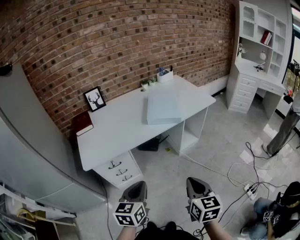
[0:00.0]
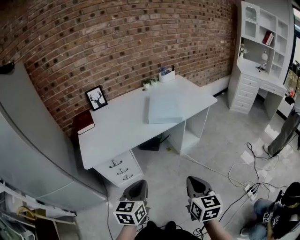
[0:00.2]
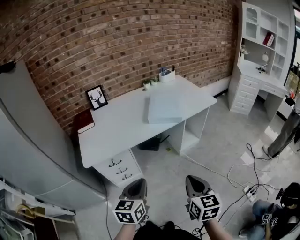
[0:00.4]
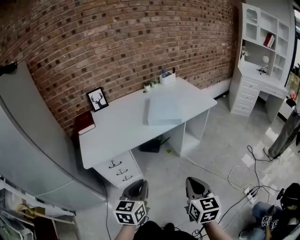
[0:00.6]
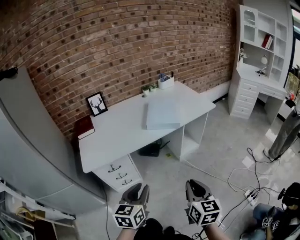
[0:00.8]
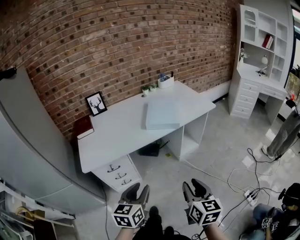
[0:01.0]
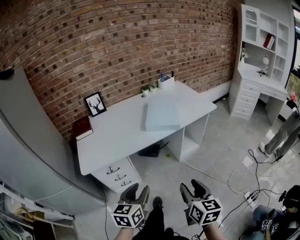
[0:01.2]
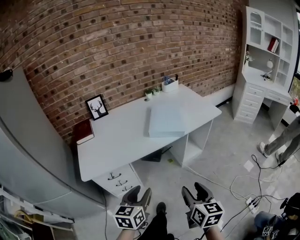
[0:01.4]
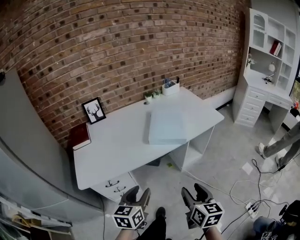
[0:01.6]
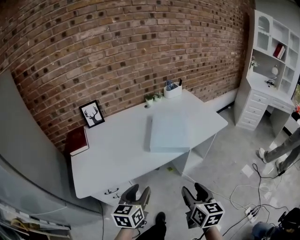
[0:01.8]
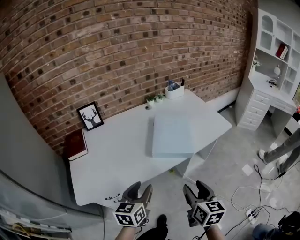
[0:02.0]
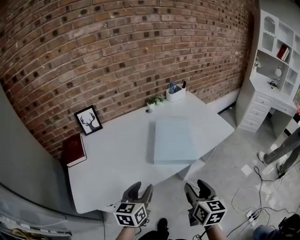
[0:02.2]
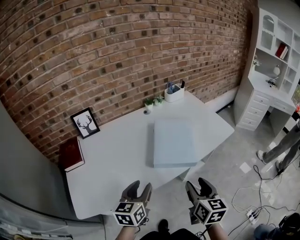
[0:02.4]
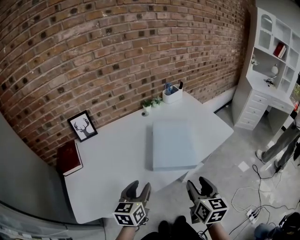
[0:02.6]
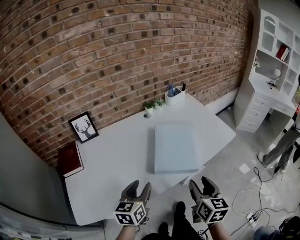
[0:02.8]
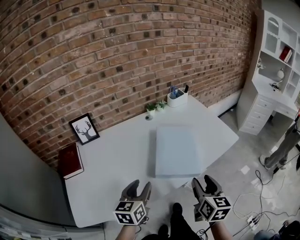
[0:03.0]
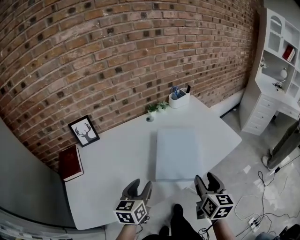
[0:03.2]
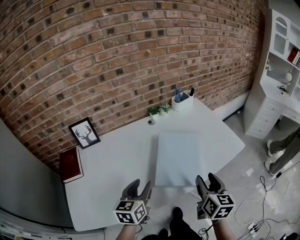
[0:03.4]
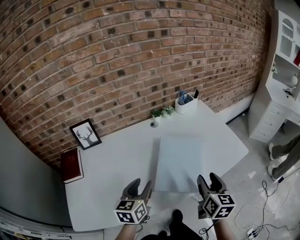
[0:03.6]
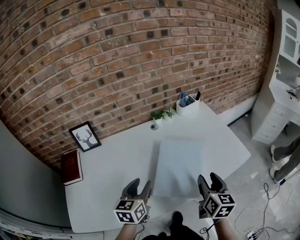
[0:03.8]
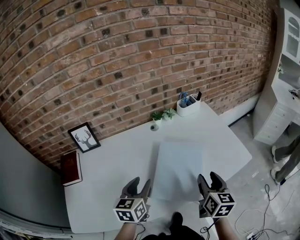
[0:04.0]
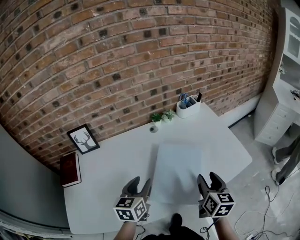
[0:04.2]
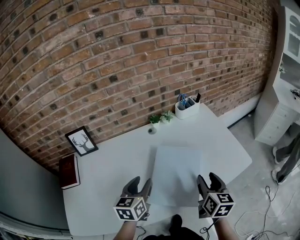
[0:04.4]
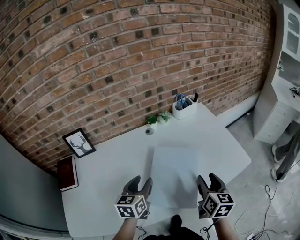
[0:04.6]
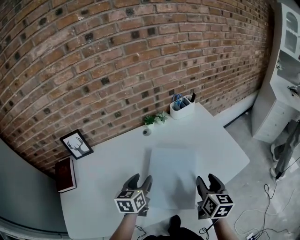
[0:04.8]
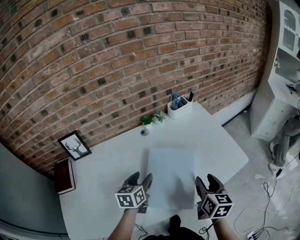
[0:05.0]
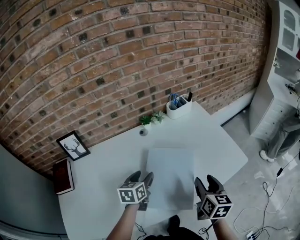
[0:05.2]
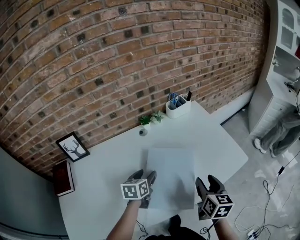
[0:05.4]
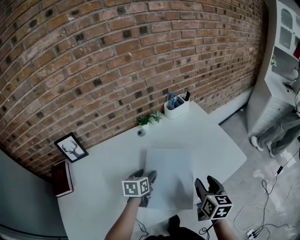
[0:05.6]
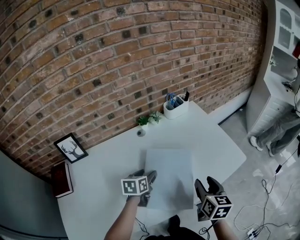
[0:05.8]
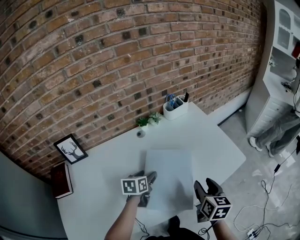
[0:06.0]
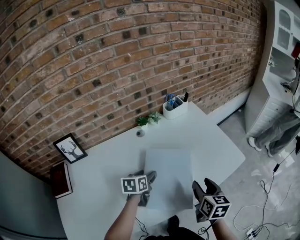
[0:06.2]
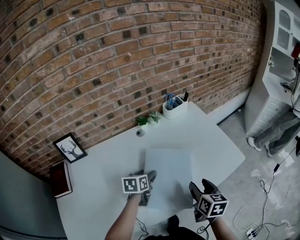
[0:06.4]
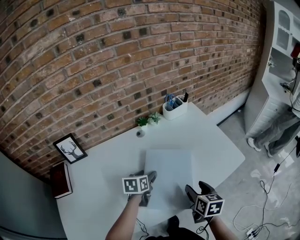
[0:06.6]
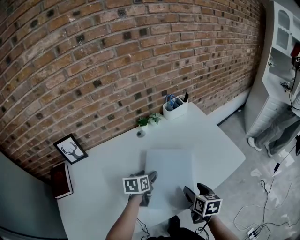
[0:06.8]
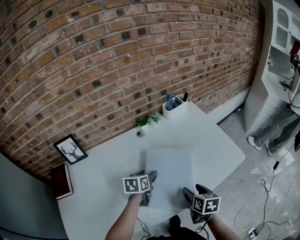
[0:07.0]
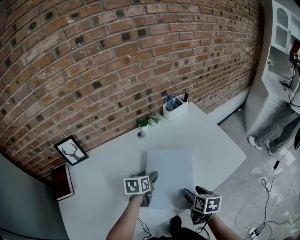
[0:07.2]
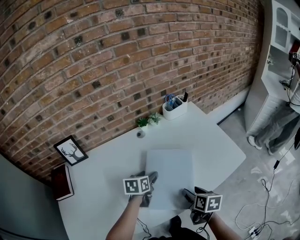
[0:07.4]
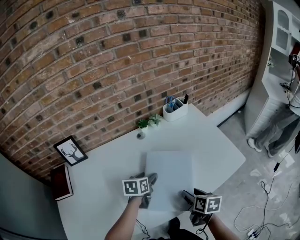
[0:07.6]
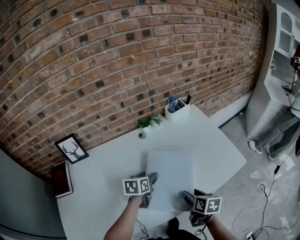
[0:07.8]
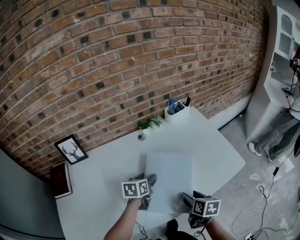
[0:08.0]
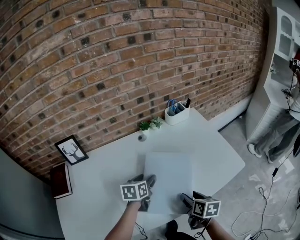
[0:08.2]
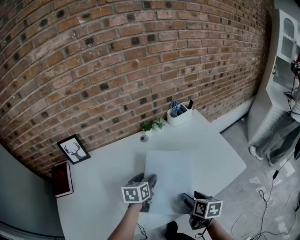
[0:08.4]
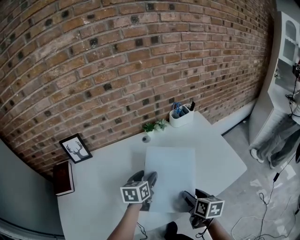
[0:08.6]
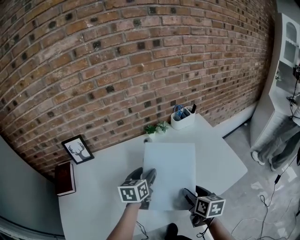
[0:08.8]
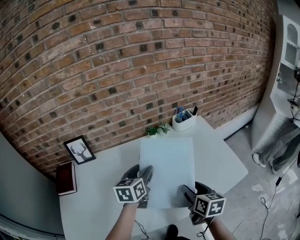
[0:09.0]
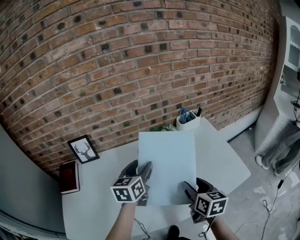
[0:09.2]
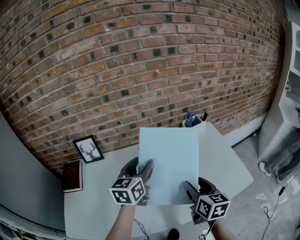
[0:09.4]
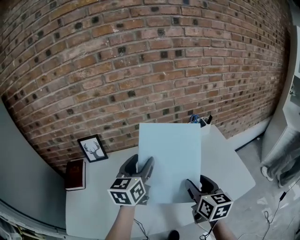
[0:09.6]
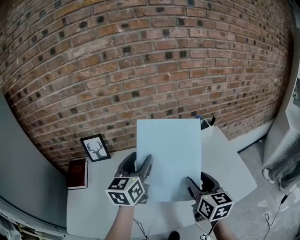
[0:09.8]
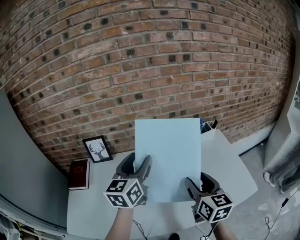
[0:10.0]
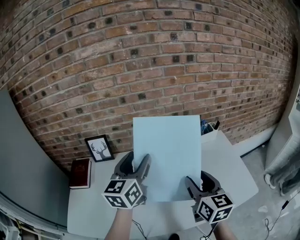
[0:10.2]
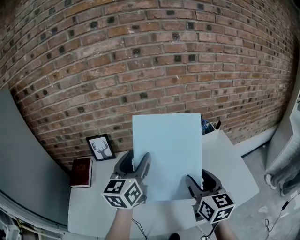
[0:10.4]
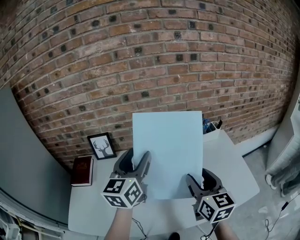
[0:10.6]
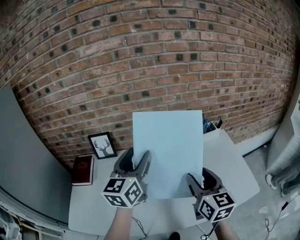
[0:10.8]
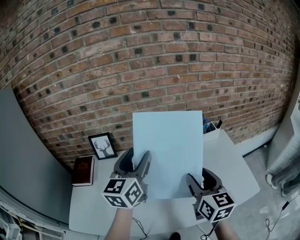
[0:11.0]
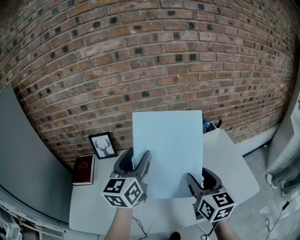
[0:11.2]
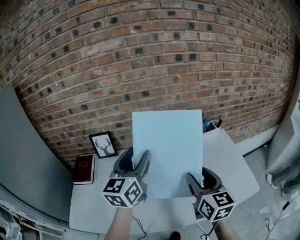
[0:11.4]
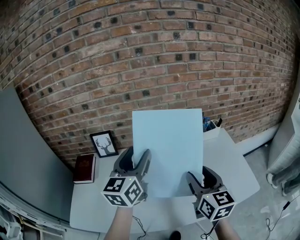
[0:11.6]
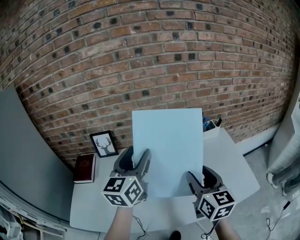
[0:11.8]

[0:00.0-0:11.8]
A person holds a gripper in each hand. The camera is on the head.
0:00.0 to 0:01.4: Both grippers travel together forward, some 5 cm. The left gripper opens, while the right gripper opens up.
0:01.4 to 0:03.0: The grippers both shift forward by some 35 cm.
0:03.0 to 0:04.4: Both grippers move forward, approximately 20 cm.
0:04.4 to 0:06.0: The left gripper travels downward and forward by about 15 cm, and swivels some 20 degrees.
0:06.0 to 0:07.4: The right gripper travels downward and to the left by approximately 10 cm, and turns by some 20 degrees.
0:07.4 to 0:08.8: The left gripper goes approximately 10 cm upward. The right gripper heads upward, covering roughly 5 cm.
0:08.8 to 0:10.4: Both grippers move upward and to the left, some 20 cm. The right gripper turns by roughly 30 degrees. The left gripper rotates roughly 30 degrees.
0:10.4 to 0:11.8: There are only small adjustments of the grippers.

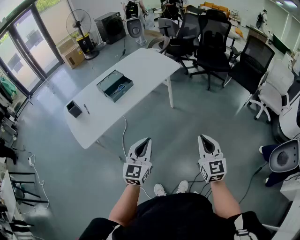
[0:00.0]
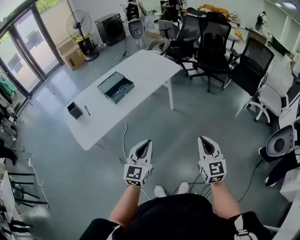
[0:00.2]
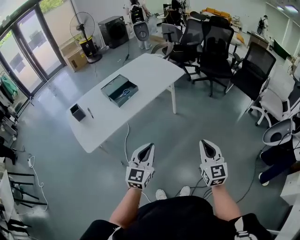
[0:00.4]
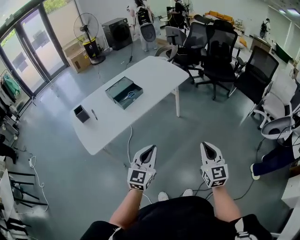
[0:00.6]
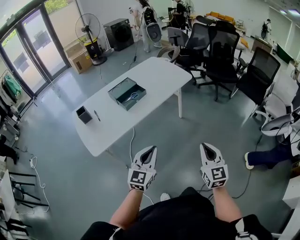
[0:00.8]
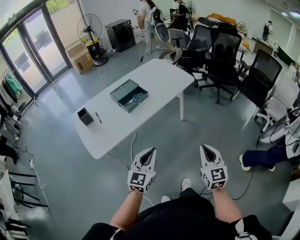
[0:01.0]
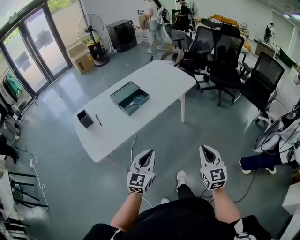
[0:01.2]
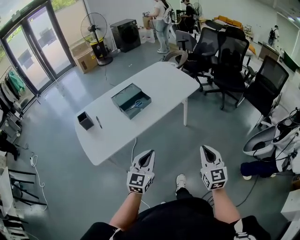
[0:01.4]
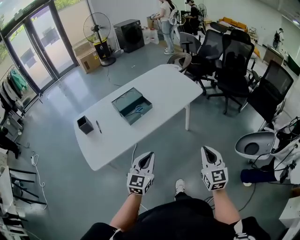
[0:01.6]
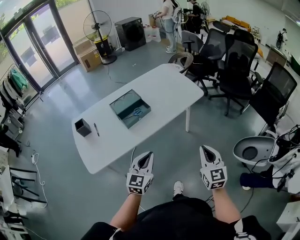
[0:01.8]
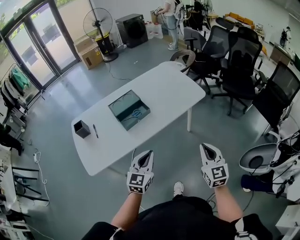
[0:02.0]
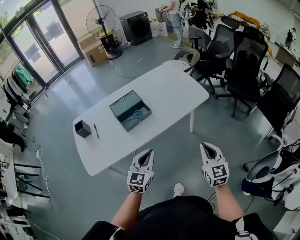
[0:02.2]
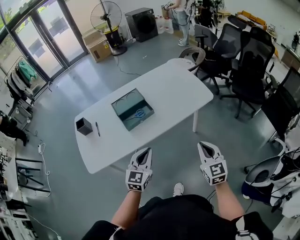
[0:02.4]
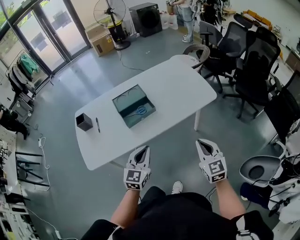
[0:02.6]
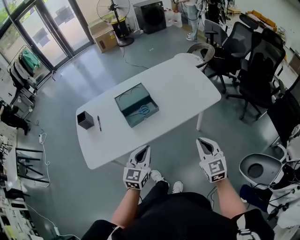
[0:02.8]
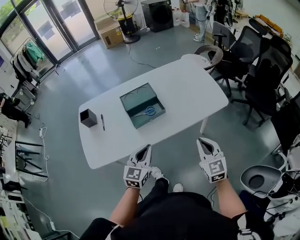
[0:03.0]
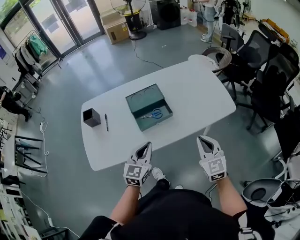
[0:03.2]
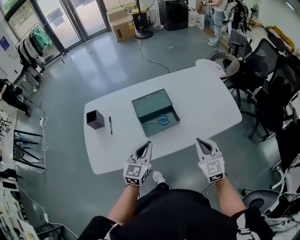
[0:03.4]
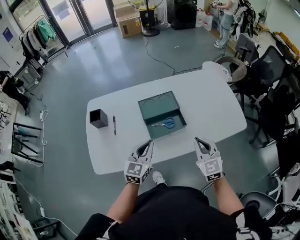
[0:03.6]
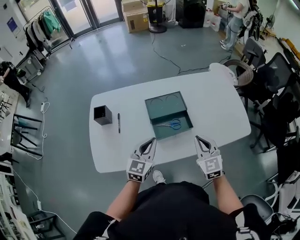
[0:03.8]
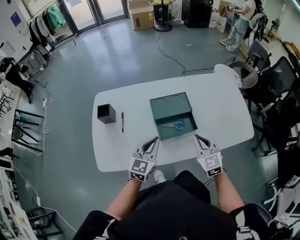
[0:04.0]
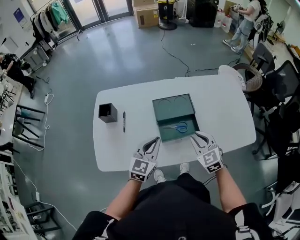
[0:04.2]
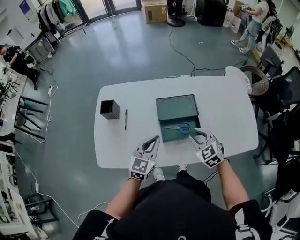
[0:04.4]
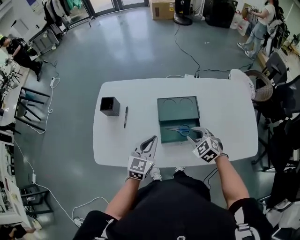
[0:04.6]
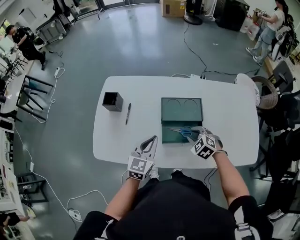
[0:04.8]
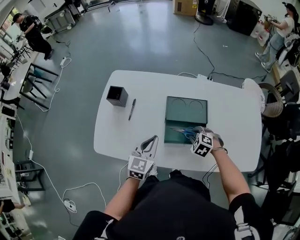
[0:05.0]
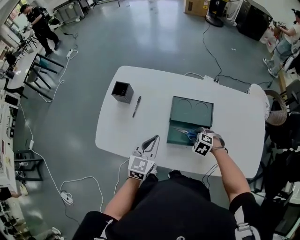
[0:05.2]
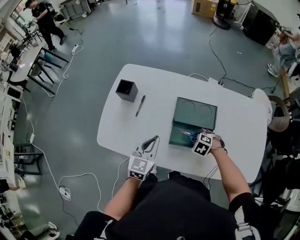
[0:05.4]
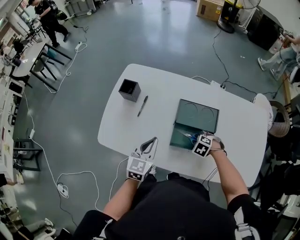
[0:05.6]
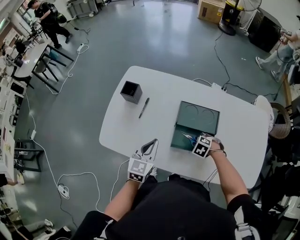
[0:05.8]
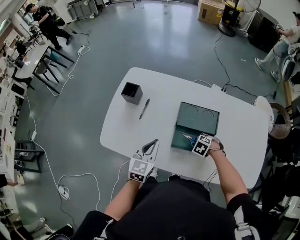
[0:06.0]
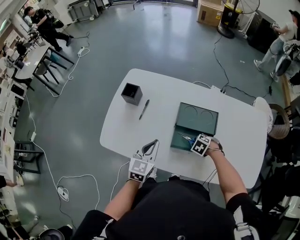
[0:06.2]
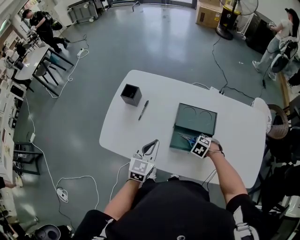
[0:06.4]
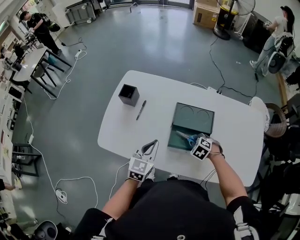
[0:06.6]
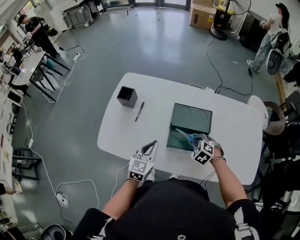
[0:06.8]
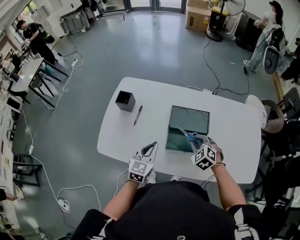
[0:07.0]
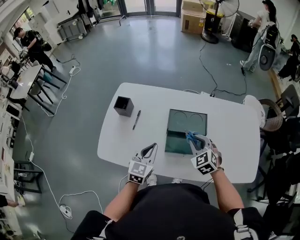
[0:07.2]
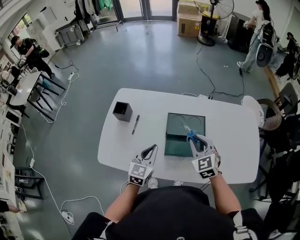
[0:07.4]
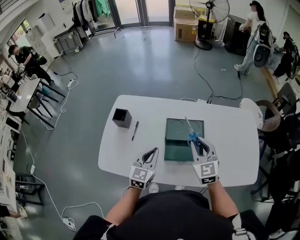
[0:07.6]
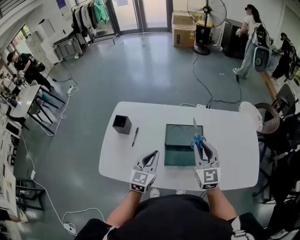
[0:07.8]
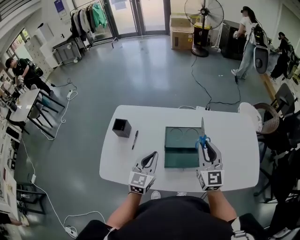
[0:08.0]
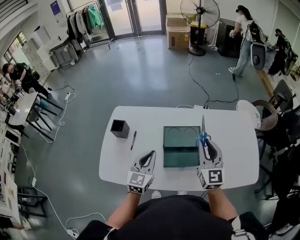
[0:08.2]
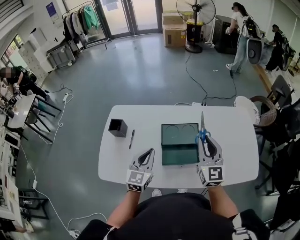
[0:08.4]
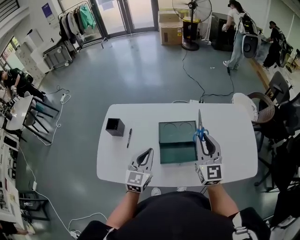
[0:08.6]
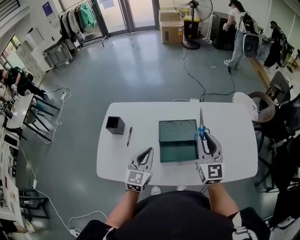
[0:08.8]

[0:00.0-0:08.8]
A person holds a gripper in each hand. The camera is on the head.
0:00.0 to 0:01.4: The right gripper heads forward and to the left, covering some 15 cm, while the left gripper shifts roughly 15 cm to the left and forward.
0:01.4 to 0:03.0: Both grippers travel together forward, roughly 25 cm. The right gripper swivels roughly 30 degrees.
0:03.0 to 0:04.4: Both grippers travel together forward and to the left, some 30 cm. The right gripper swivels roughly 40 degrees, and opens up.
0:04.4 to 0:05.8: The right gripper shifts about 20 cm downward, and angles its fingers downward, by roughly 40 degrees, while the left gripper shifts by roughly 10 cm, and rotates approximately 30 degrees.
0:05.8 to 0:07.4: The right gripper goes approximately 25 cm upward, and points its fingers some 50 degrees further upward.
0:07.4 to 0:08.8: The left gripper shifts by about 5 cm; the right gripper travels upward and to the right by approximately 15 cm, and changes its angle by some 40 degrees.

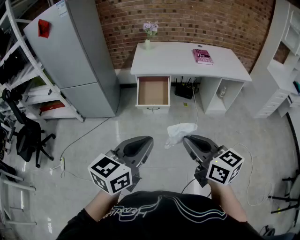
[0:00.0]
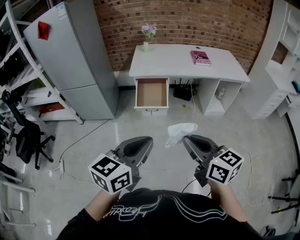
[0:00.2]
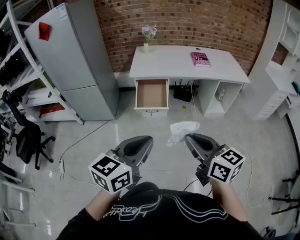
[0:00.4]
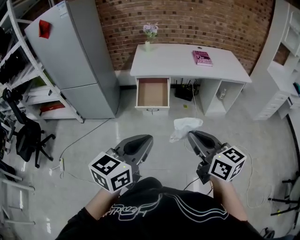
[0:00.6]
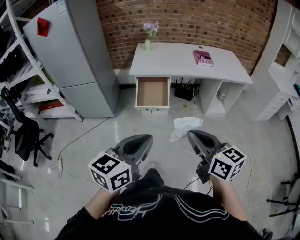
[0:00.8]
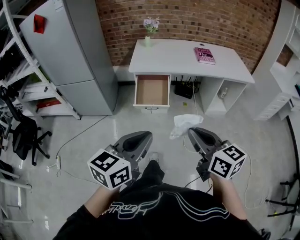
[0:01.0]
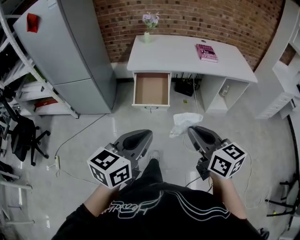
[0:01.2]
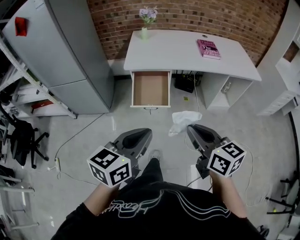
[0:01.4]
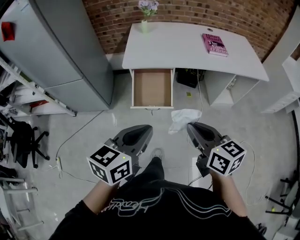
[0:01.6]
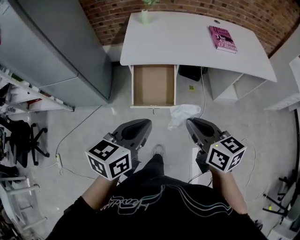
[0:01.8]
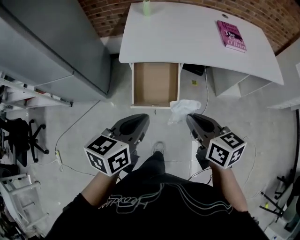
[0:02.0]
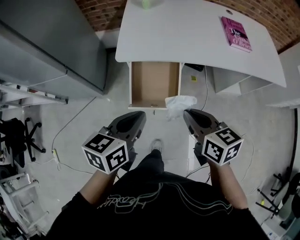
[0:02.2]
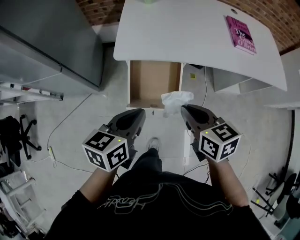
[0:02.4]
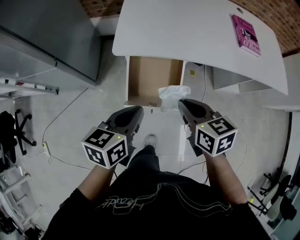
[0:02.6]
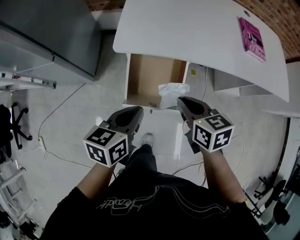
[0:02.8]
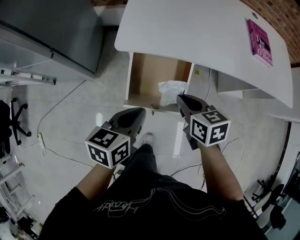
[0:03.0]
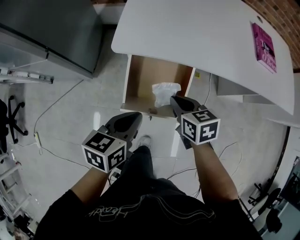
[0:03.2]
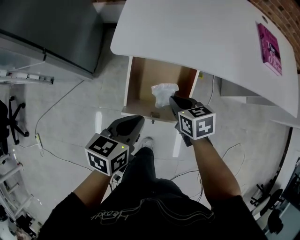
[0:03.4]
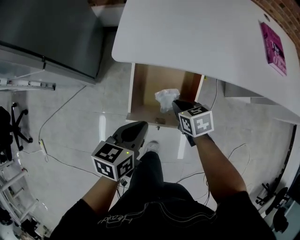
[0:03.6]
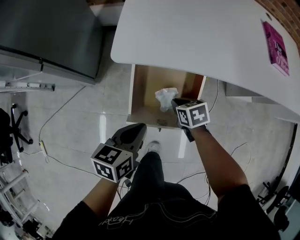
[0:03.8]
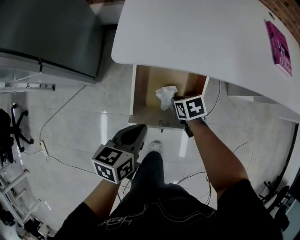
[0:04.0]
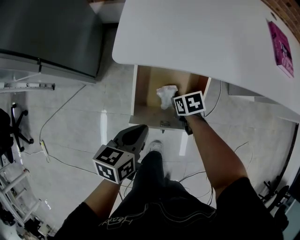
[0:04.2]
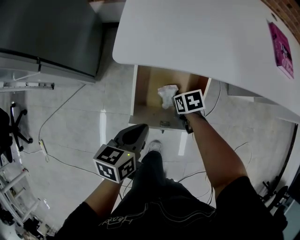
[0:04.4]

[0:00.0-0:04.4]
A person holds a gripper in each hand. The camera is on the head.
0:00.0 to 0:01.4: The two grippers go some 20 cm forward.
0:01.4 to 0:03.0: Both grippers are carried forward, some 40 cm. The two grippers go roughly 30 cm downward. The right gripper changes its angle by roughly 30 degrees; the left gripper rotates some 30 degrees.
0:03.0 to 0:04.4: The left gripper is displaced downward by approximately 15 cm. Meanwhile the right gripper shifts about 25 cm downward, and turns by roughly 30 degrees.
